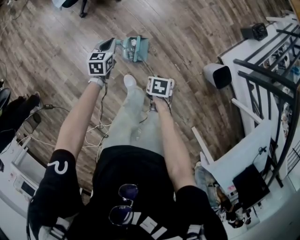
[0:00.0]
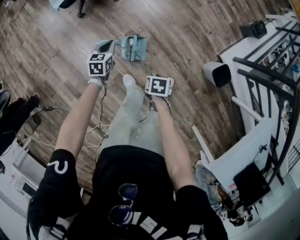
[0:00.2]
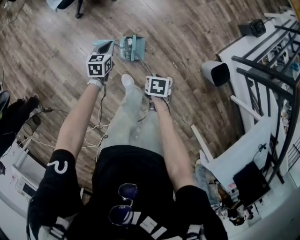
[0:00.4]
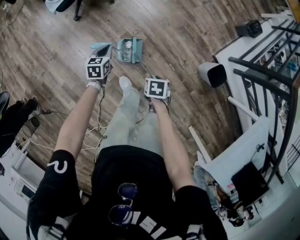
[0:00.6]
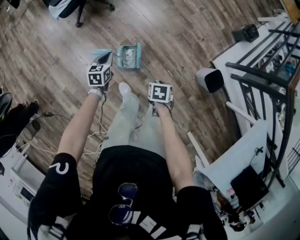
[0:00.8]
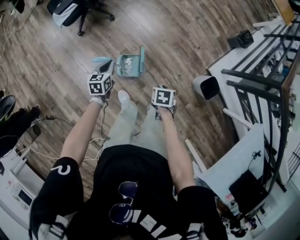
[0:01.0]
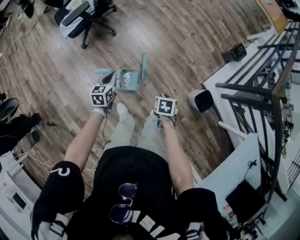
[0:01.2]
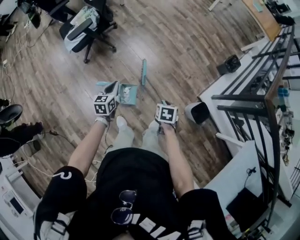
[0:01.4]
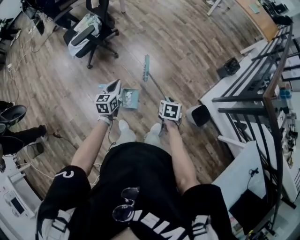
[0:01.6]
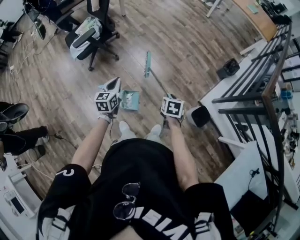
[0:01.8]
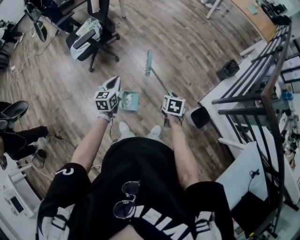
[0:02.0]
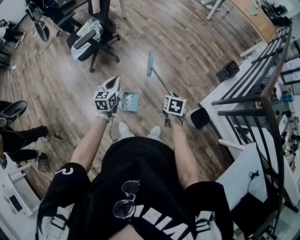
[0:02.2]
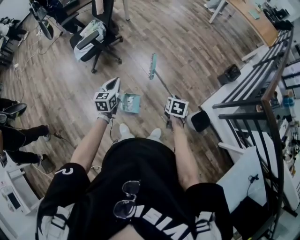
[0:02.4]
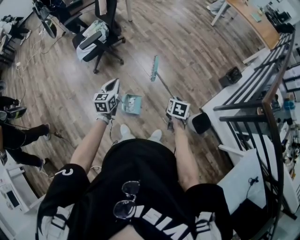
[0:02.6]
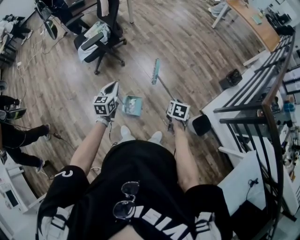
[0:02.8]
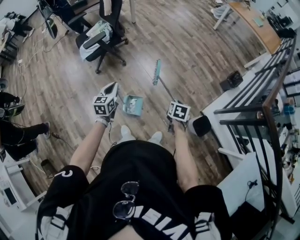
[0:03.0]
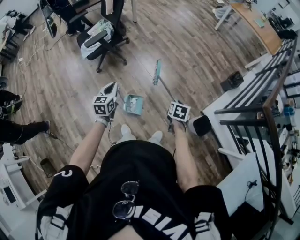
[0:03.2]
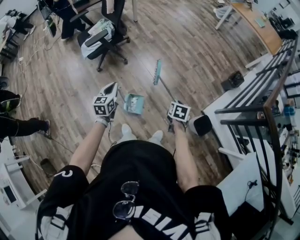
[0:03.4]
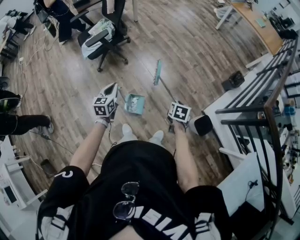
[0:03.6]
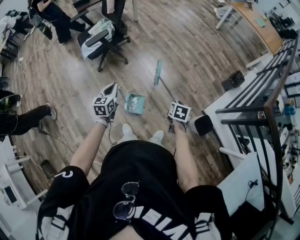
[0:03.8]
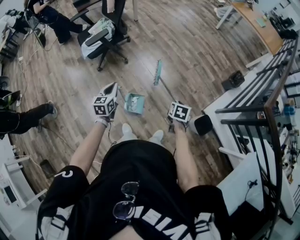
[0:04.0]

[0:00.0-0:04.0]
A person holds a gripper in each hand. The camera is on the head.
0.0 to 1.4 s: The right gripper moves roughly 25 cm. Meanwhile the left gripper travels upward by about 20 cm.
1.4 to 2.6 s: The right gripper heads upward and to the right, covering approximately 10 cm. Meanwhile the left gripper is displaced upward by roughly 10 cm.
2.6 to 4.0 s: The left gripper heads to the left, covering roughly 5 cm.

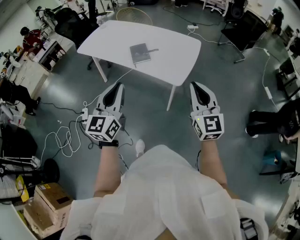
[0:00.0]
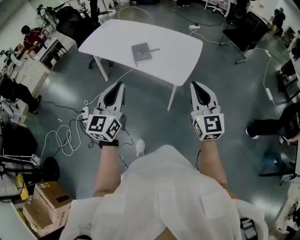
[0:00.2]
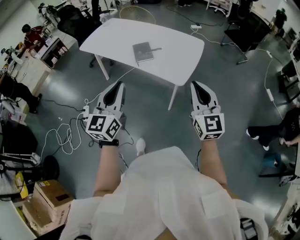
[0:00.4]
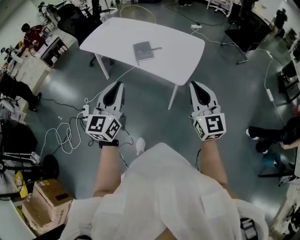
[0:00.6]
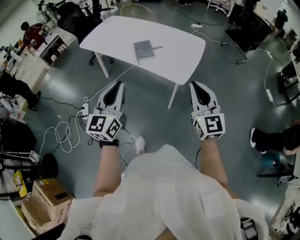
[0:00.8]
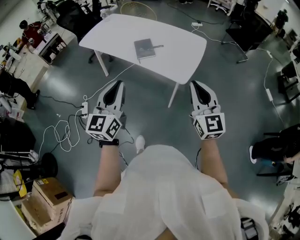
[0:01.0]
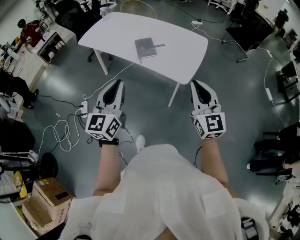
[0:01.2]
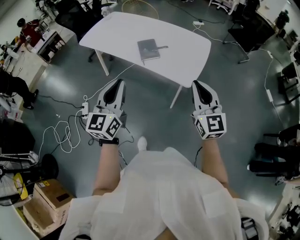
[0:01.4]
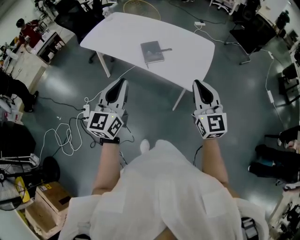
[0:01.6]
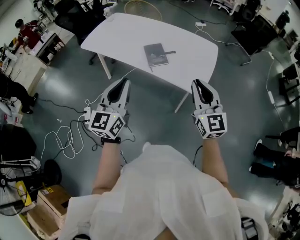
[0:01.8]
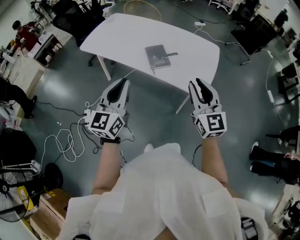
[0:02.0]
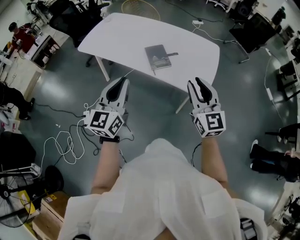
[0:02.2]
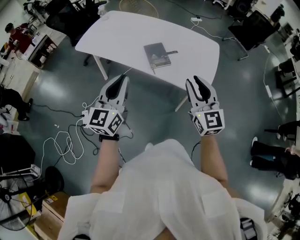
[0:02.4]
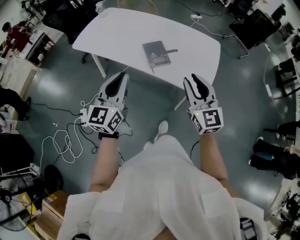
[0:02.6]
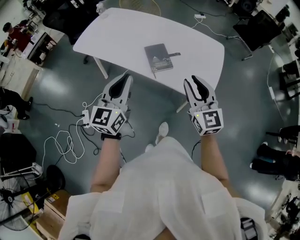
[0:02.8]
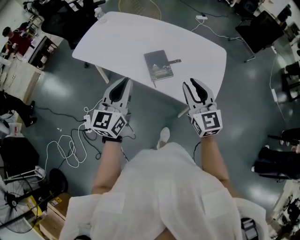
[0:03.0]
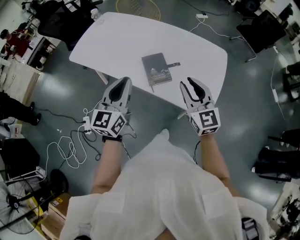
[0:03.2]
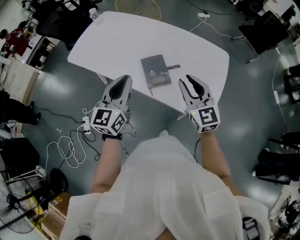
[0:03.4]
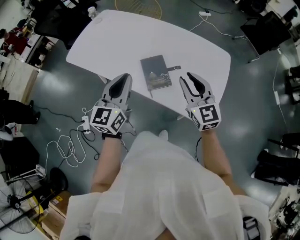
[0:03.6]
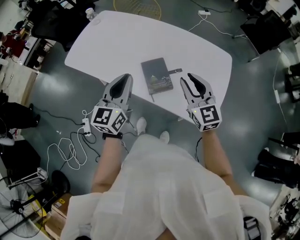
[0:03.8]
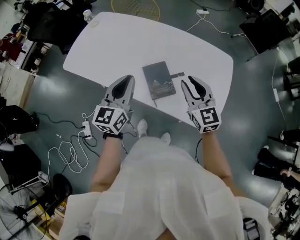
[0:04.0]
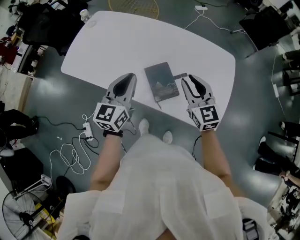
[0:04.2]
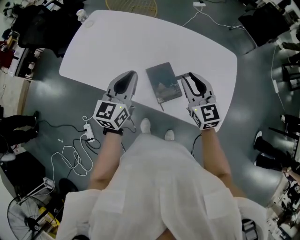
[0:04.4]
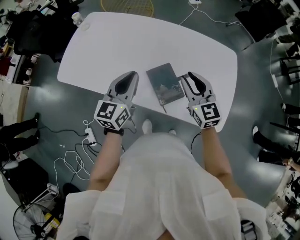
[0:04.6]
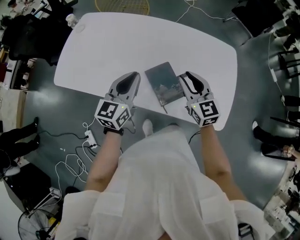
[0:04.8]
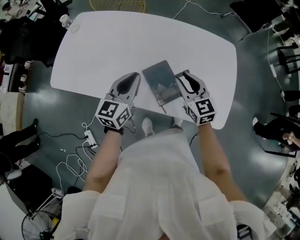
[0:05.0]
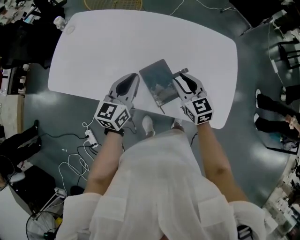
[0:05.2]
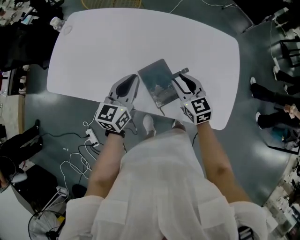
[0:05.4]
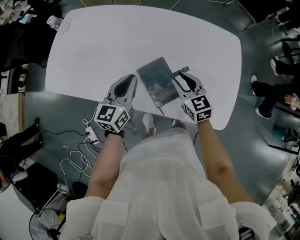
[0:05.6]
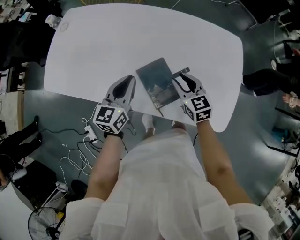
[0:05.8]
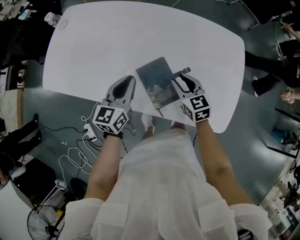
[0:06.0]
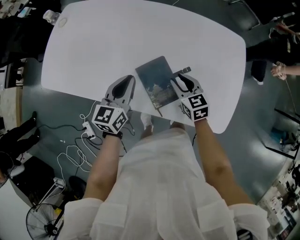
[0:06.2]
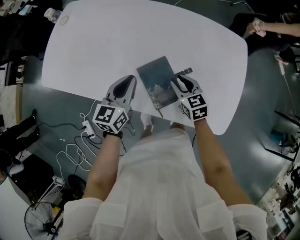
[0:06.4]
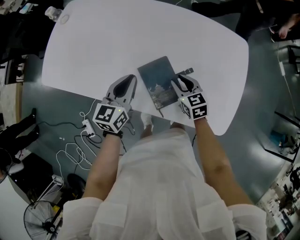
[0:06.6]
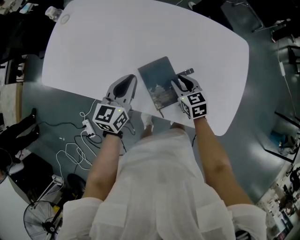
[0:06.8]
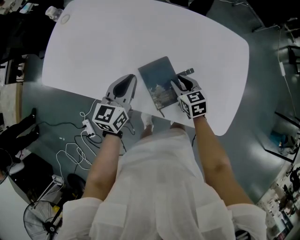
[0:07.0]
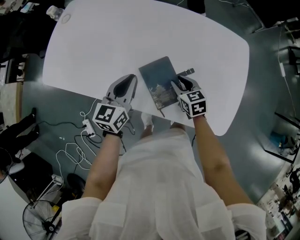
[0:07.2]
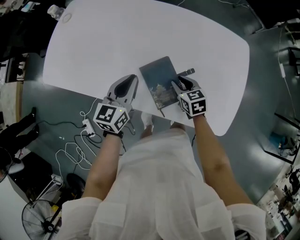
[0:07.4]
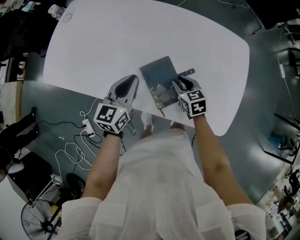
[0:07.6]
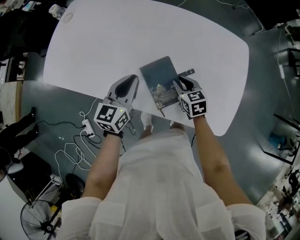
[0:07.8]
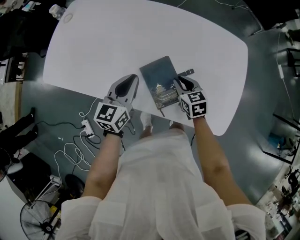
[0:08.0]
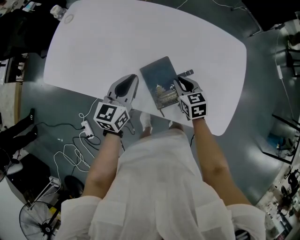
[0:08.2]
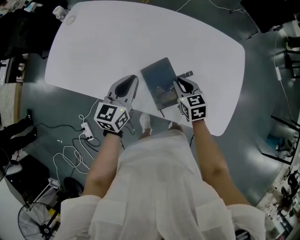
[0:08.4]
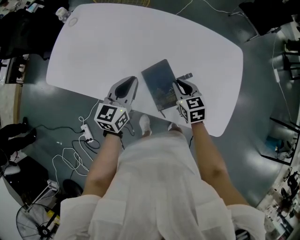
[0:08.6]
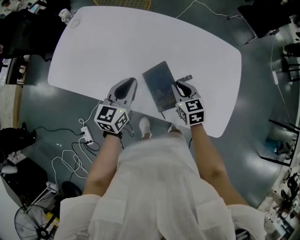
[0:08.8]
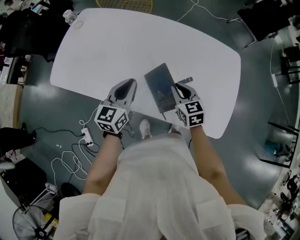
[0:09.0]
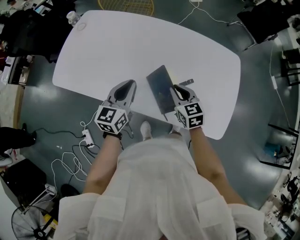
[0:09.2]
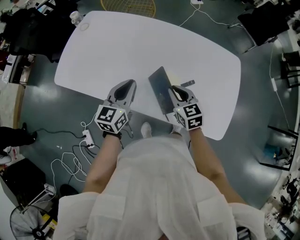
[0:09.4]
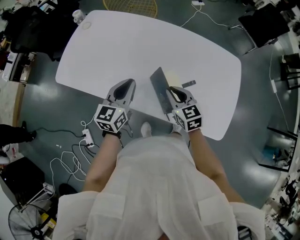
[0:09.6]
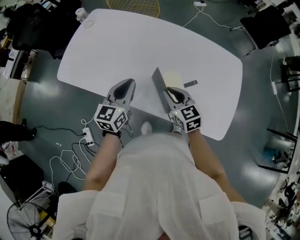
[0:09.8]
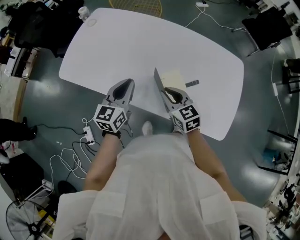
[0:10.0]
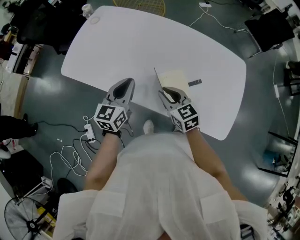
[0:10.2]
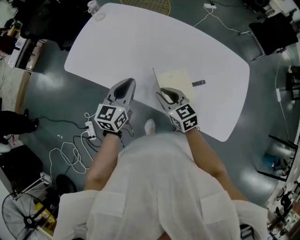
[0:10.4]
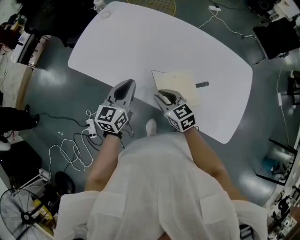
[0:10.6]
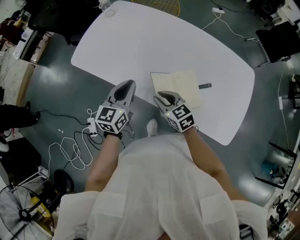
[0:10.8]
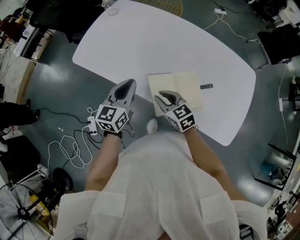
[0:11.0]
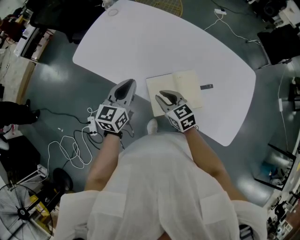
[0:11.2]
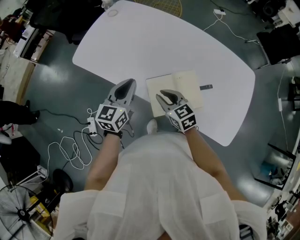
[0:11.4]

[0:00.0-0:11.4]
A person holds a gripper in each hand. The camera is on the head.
0.0 to 1.4 s: Both grippers move to the left and forward, about 10 cm.
1.4 to 2.8 s: The two grippers go about 25 cm forward and to the left. The right gripper opens.
2.8 to 4.2 s: The grippers both shift forward by some 25 cm.
4.2 to 5.6 s: The two grippers go some 15 cm downward and forward.
5.6 to 7.2 s: The right gripper goes approximately 10 cm downward.
7.2 to 8.6 s: The right gripper moves upward, roughly 5 cm.
8.6 to 10.0 s: The right gripper goes roughly 15 cm to the left and upward. Meanwhile the left gripper goes roughly 10 cm to the left.
10.0 to 11.4 s: Both grippers travel together to the left, approximately 10 cm.

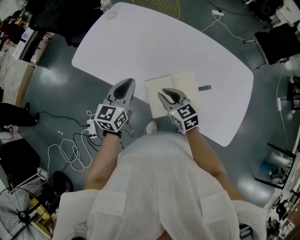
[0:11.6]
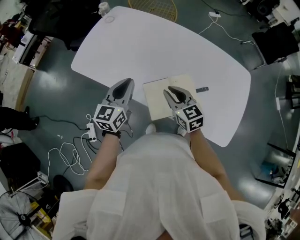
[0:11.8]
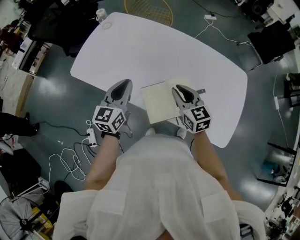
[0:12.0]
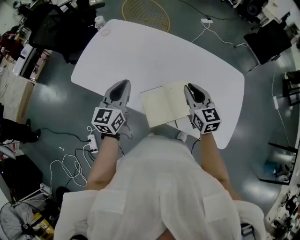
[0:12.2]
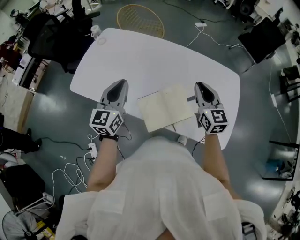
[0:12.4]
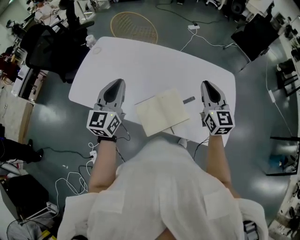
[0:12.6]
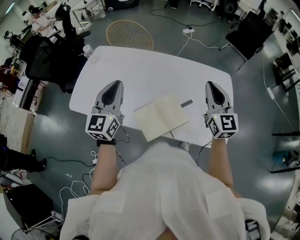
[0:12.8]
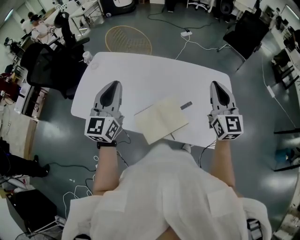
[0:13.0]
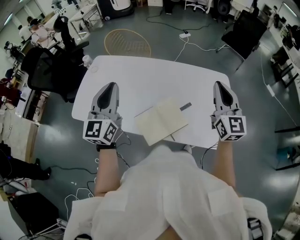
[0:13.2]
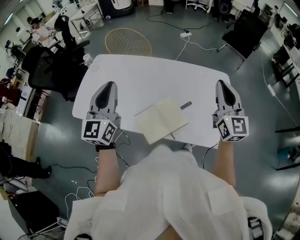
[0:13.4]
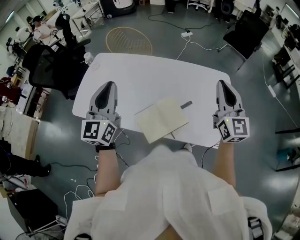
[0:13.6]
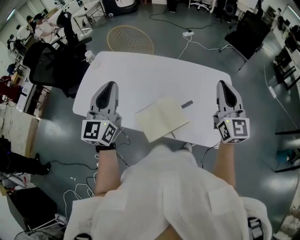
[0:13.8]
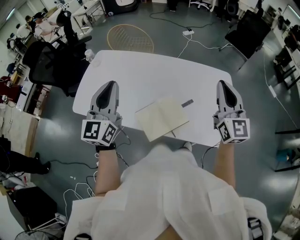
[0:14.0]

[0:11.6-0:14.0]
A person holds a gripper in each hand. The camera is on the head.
11.6 to 12.8 s: The right gripper is displaced to the right and upward by approximately 35 cm, and tilts its fingers roughly 30 degrees upward. Meanwhile the left gripper is displaced upward by roughly 20 cm, and changes its angle by roughly 20 degrees.
12.8 to 14.0 s: Both grippers move upward, approximately 5 cm.

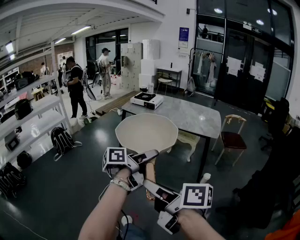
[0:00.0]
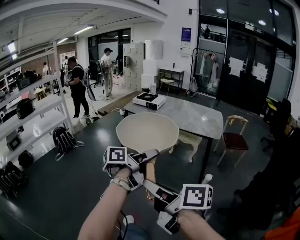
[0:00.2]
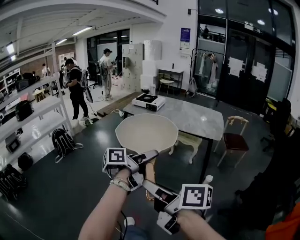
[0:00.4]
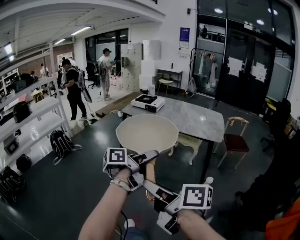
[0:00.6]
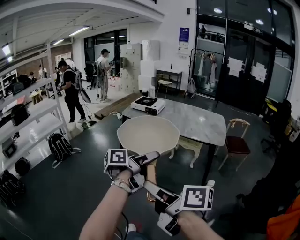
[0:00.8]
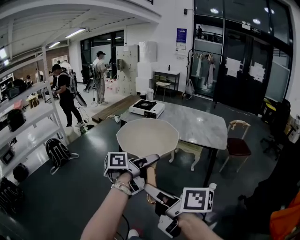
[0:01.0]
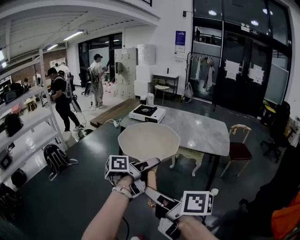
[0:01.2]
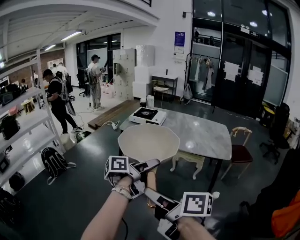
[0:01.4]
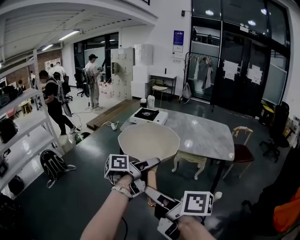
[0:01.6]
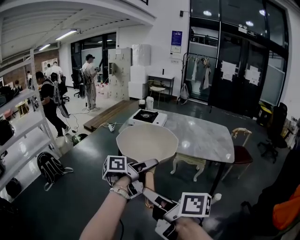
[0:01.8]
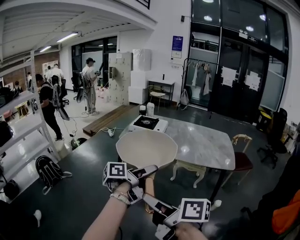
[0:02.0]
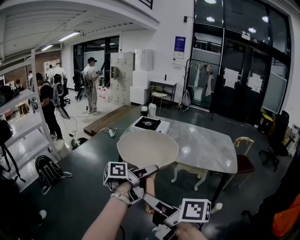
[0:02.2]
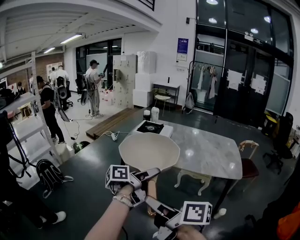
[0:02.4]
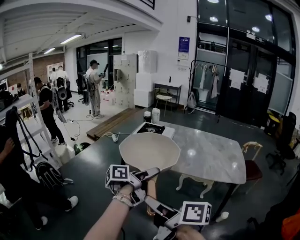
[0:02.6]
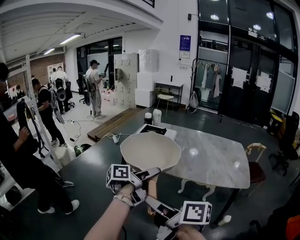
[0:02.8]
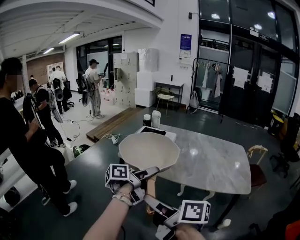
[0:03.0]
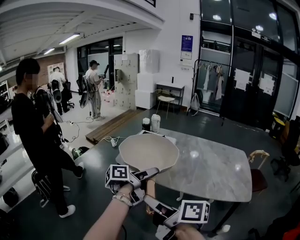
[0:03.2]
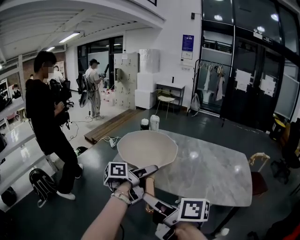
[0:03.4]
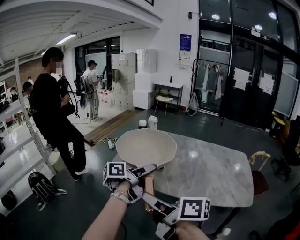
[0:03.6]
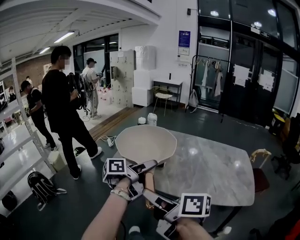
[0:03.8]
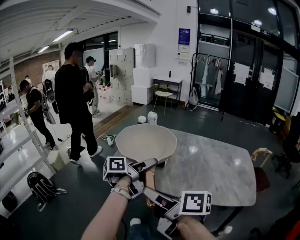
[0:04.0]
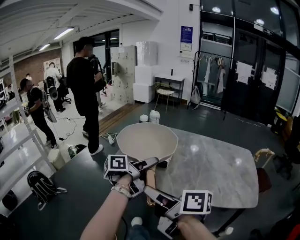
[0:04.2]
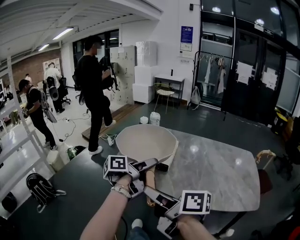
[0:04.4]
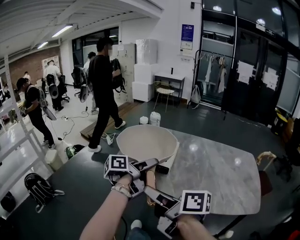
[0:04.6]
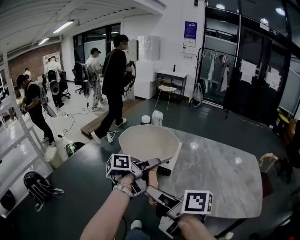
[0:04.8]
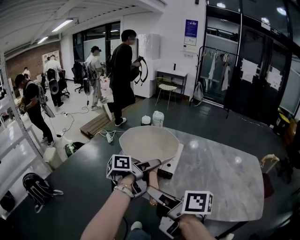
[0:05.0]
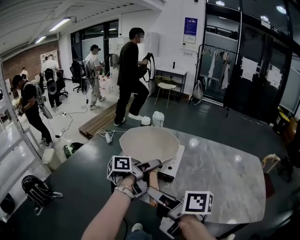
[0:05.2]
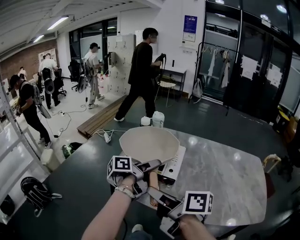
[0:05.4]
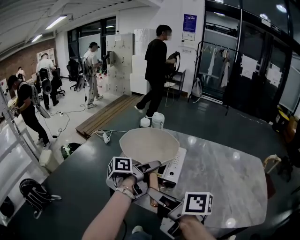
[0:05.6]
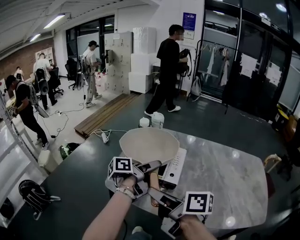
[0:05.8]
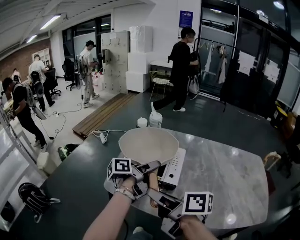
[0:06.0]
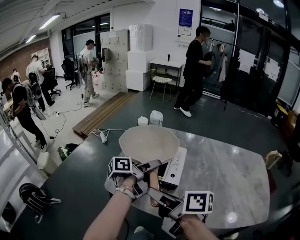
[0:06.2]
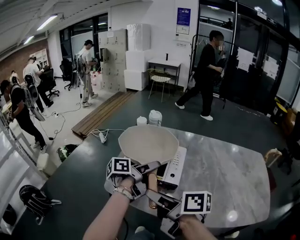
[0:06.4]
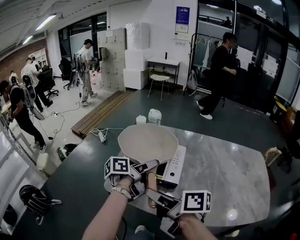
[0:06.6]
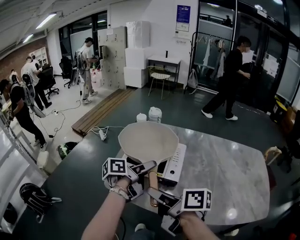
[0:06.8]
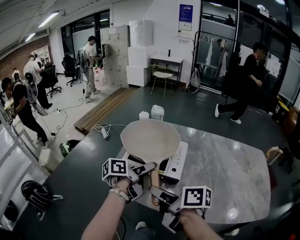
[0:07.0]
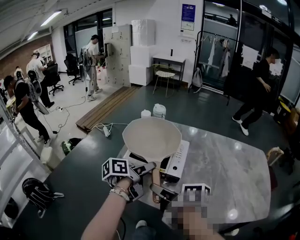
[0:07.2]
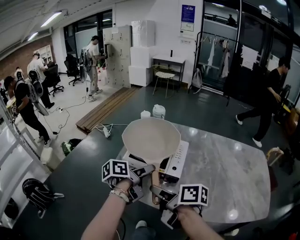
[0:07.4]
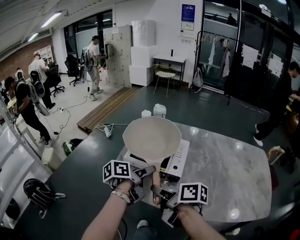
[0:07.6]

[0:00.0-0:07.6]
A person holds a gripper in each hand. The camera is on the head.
0.0 to 1.6 s: The right gripper moves forward and to the left, some 25 cm. Meanwhile the left gripper goes some 25 cm forward.
1.6 to 3.0 s: Both grippers move forward, about 25 cm.
3.0 to 4.6 s: Both grippers move forward, roughly 20 cm.
4.6 to 6.0 s: The left gripper moves forward and downward, roughly 15 cm, while the right gripper heads forward, covering some 15 cm.
6.0 to 7.6 s: The left gripper changes place by roughly 5 cm, while the right gripper moves downward, some 10 cm.
